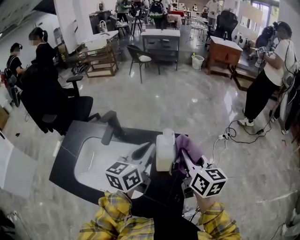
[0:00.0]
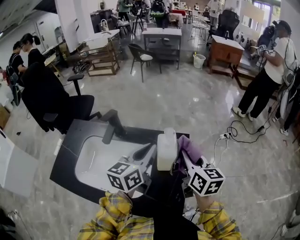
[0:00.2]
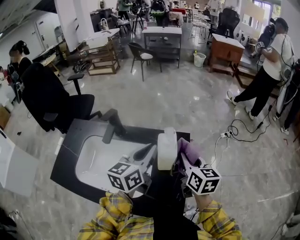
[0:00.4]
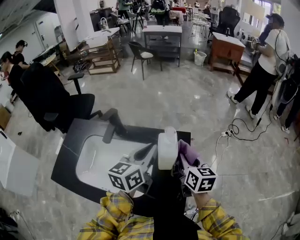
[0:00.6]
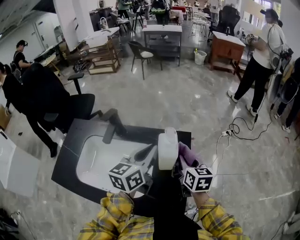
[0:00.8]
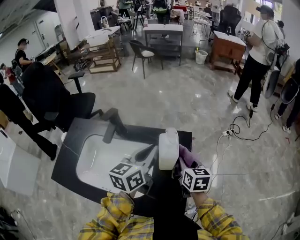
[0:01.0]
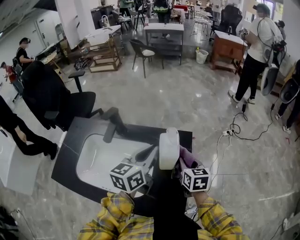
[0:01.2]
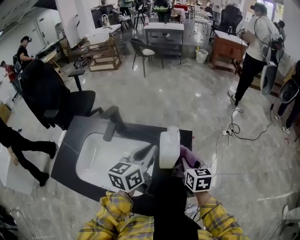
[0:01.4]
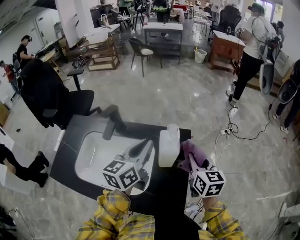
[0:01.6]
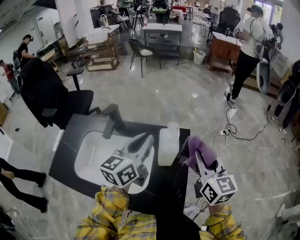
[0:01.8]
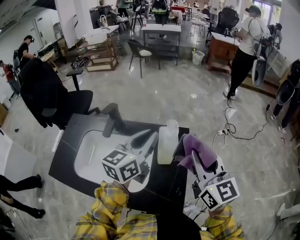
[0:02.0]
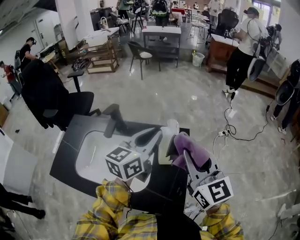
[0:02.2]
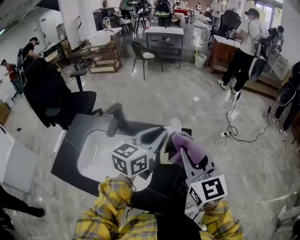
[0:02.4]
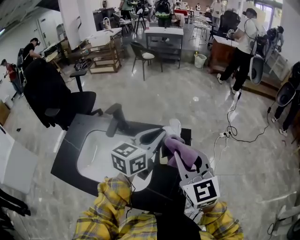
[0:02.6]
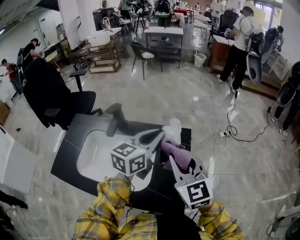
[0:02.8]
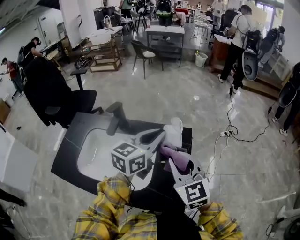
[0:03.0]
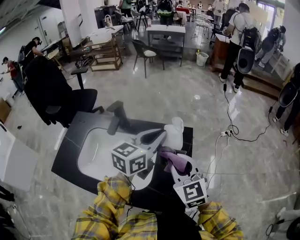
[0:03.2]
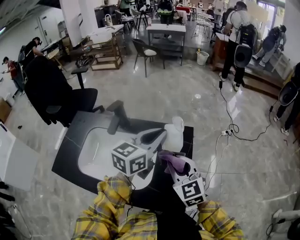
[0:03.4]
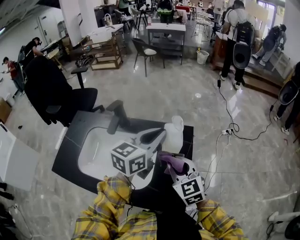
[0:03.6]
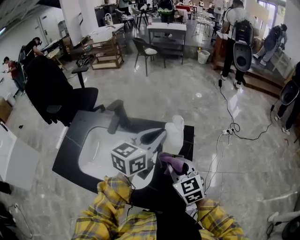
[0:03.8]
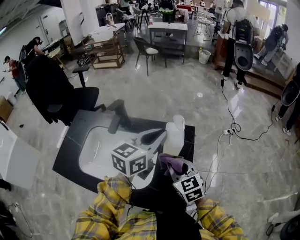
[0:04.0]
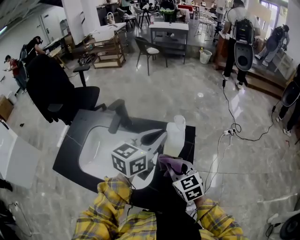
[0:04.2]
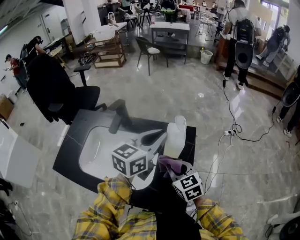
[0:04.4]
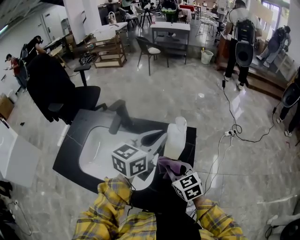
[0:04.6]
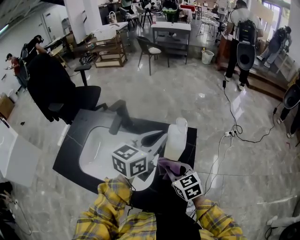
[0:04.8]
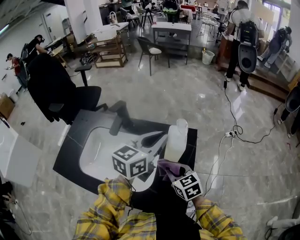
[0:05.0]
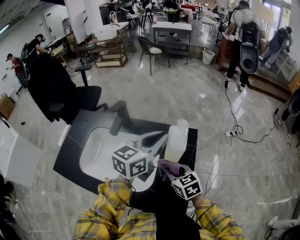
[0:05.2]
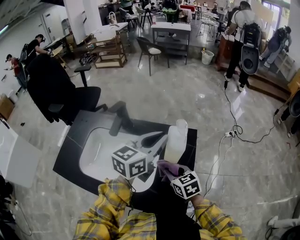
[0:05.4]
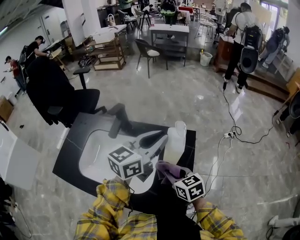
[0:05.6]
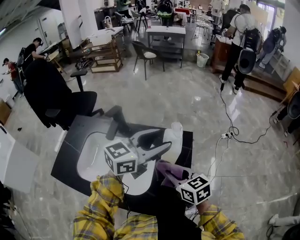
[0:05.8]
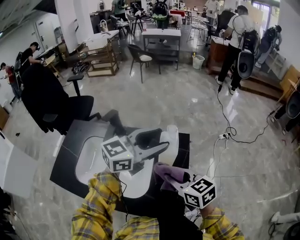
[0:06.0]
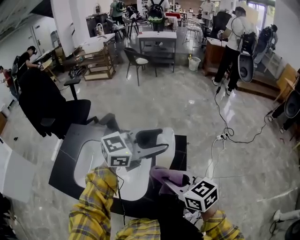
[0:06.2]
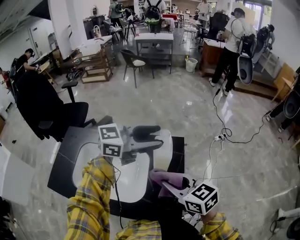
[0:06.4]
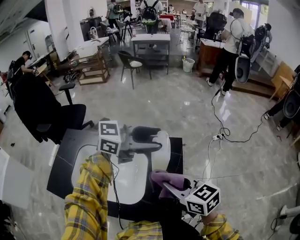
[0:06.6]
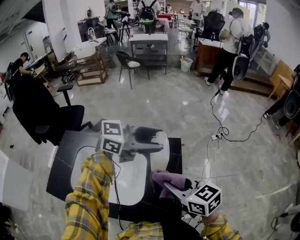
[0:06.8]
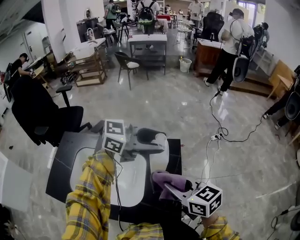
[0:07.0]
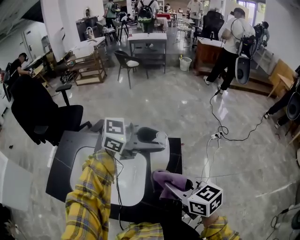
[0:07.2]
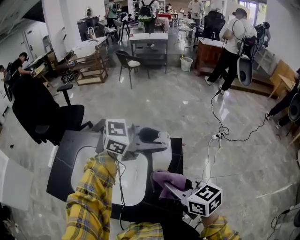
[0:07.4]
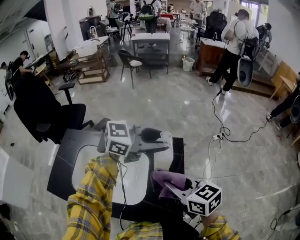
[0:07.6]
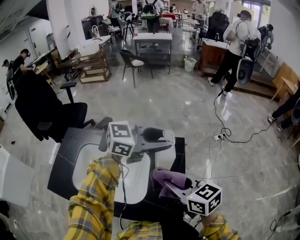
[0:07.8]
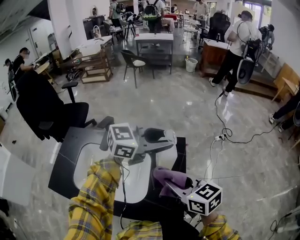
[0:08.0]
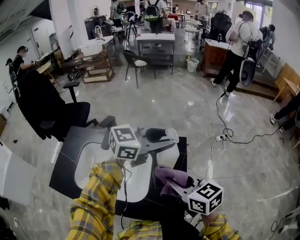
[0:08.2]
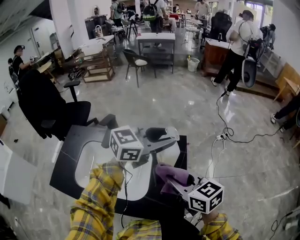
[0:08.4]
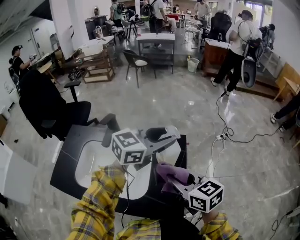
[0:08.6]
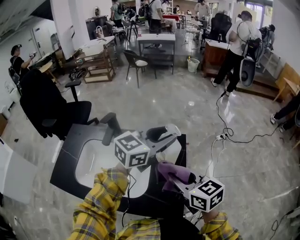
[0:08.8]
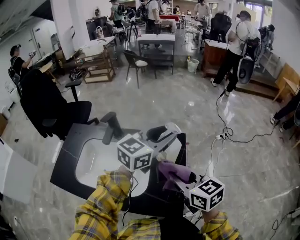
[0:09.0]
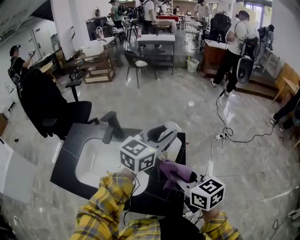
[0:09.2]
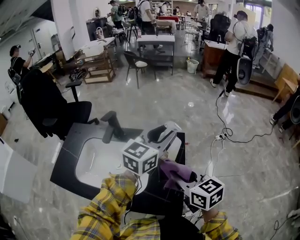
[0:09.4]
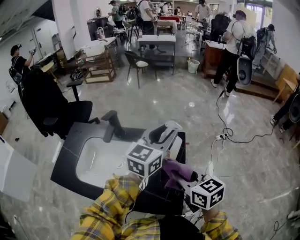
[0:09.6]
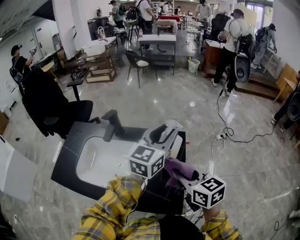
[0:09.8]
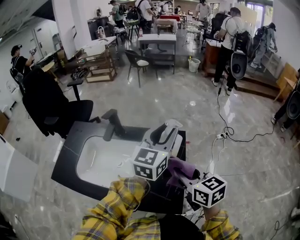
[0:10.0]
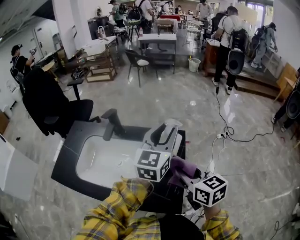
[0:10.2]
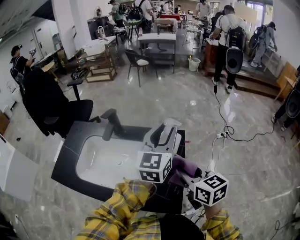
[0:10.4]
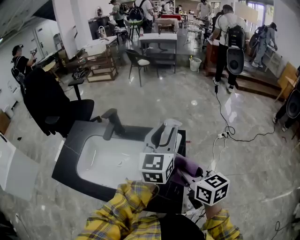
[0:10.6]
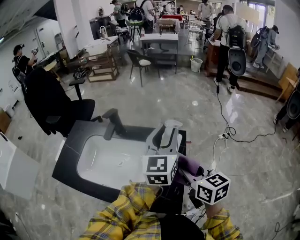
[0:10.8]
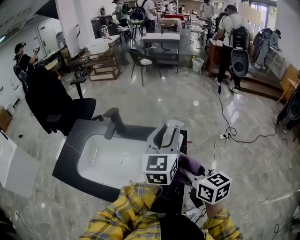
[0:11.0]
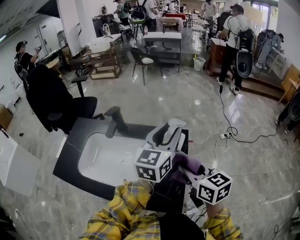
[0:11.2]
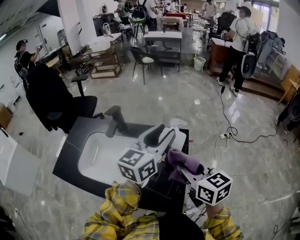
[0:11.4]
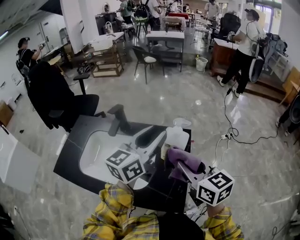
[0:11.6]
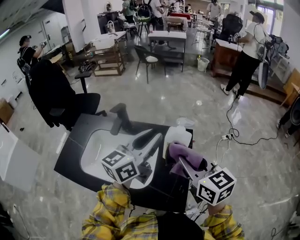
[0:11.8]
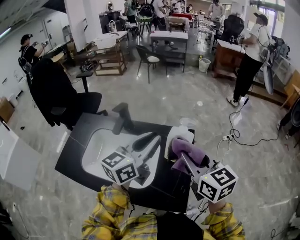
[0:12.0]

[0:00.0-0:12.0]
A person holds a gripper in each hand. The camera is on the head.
0:00.0 to 0:01.6: The right gripper shifts some 5 cm downward.
0:01.6 to 0:03.0: The right gripper heads to the left, backward and upward, covering approximately 15 cm, and swivels about 30 degrees.
0:03.0 to 0:04.4: The right gripper heads downward, covering roughly 15 cm, and changes its angle by approximately 20 degrees.
0:04.4 to 0:06.0: The right gripper goes approximately 5 cm upward, while the left gripper turns by approximately 30 degrees, and opens its fingers.
0:06.0 to 0:07.6: The left gripper swivels some 30 degrees.
0:07.6 to 0:09.0: The left gripper turns by some 40 degrees.
0:09.0 to 0:10.4: The left gripper swivels about 30 degrees.
0:10.4 to 0:12.0: The right gripper goes about 5 cm upward; the left gripper goes roughly 10 cm to the left, and turns by about 20 degrees.

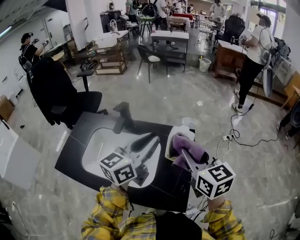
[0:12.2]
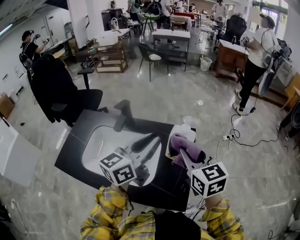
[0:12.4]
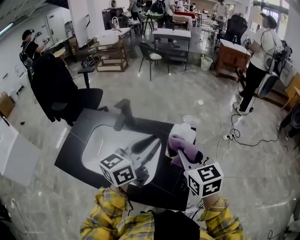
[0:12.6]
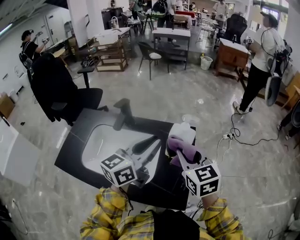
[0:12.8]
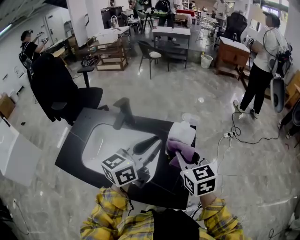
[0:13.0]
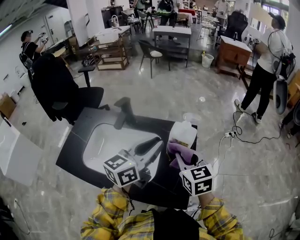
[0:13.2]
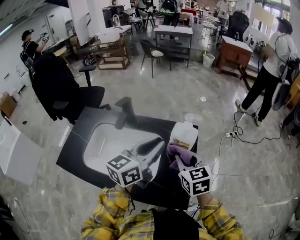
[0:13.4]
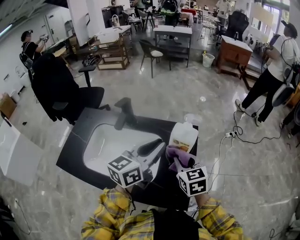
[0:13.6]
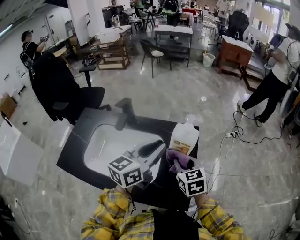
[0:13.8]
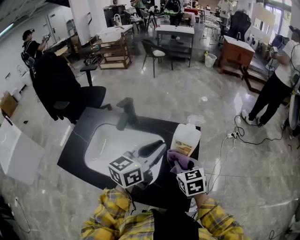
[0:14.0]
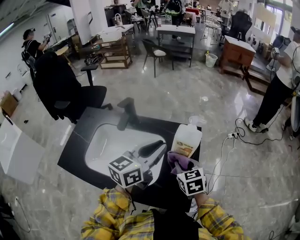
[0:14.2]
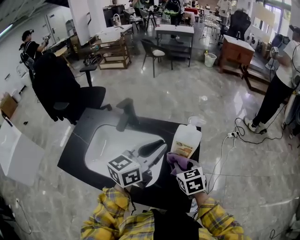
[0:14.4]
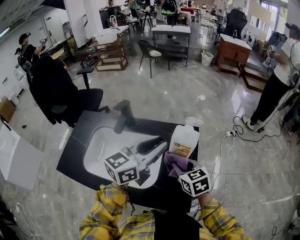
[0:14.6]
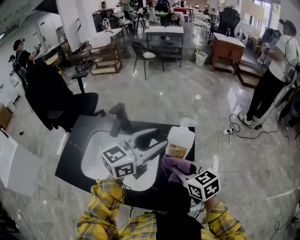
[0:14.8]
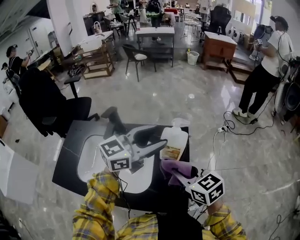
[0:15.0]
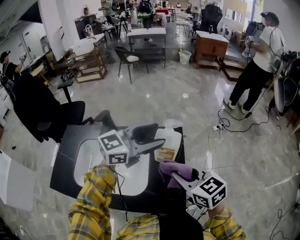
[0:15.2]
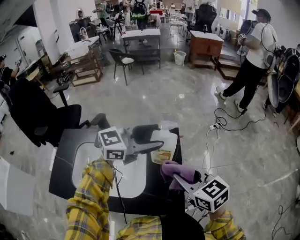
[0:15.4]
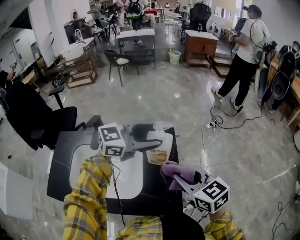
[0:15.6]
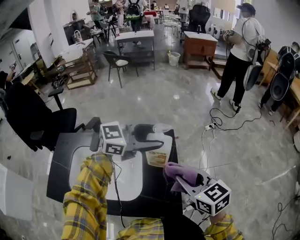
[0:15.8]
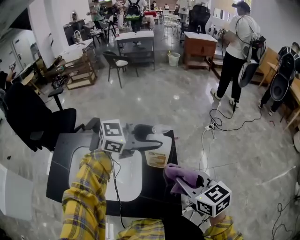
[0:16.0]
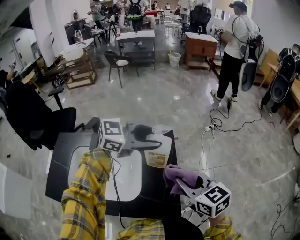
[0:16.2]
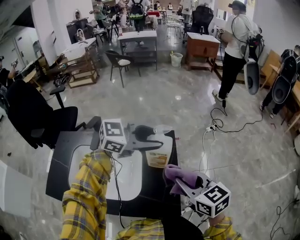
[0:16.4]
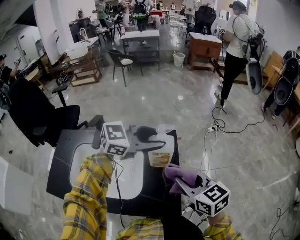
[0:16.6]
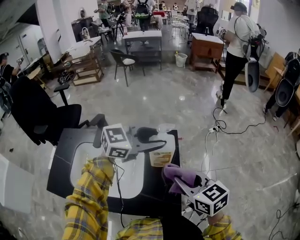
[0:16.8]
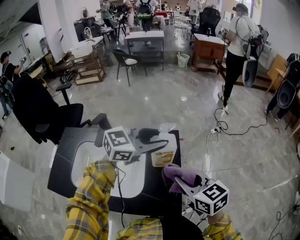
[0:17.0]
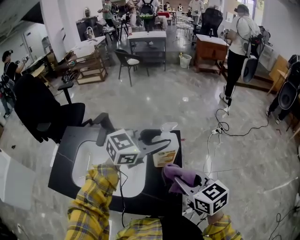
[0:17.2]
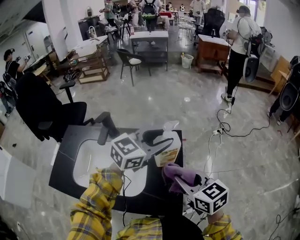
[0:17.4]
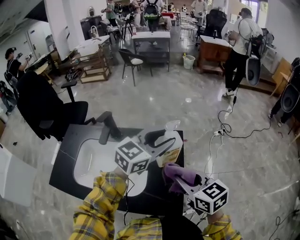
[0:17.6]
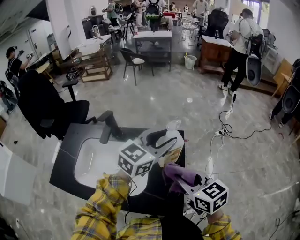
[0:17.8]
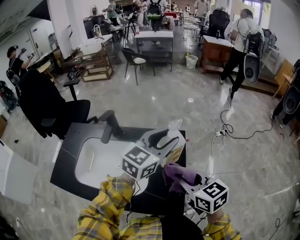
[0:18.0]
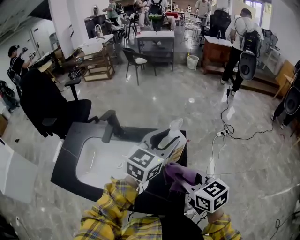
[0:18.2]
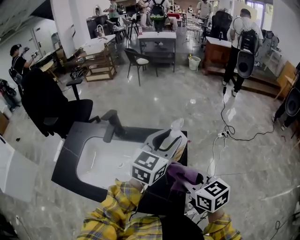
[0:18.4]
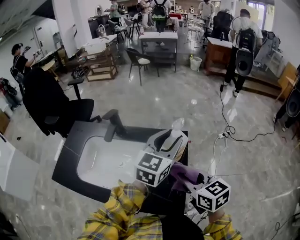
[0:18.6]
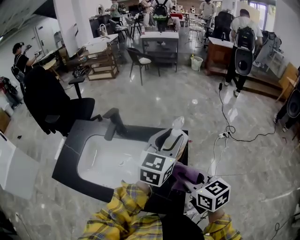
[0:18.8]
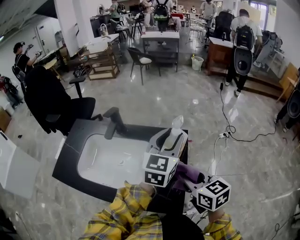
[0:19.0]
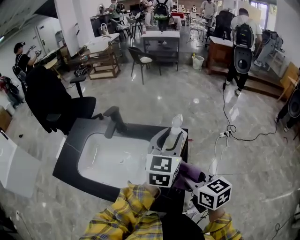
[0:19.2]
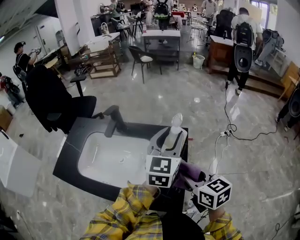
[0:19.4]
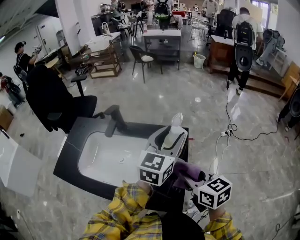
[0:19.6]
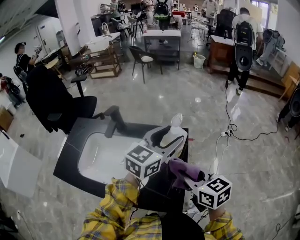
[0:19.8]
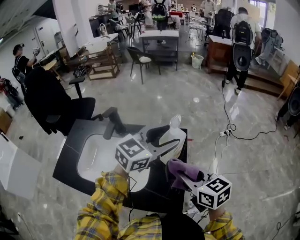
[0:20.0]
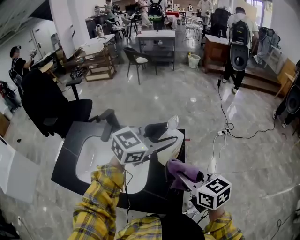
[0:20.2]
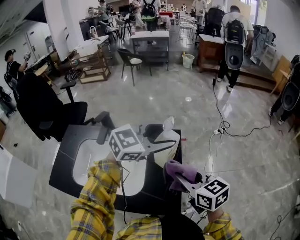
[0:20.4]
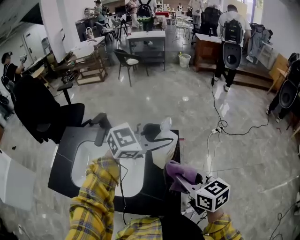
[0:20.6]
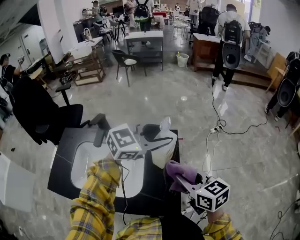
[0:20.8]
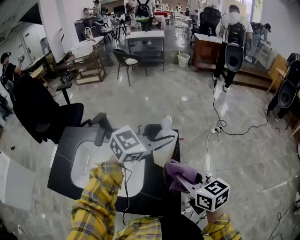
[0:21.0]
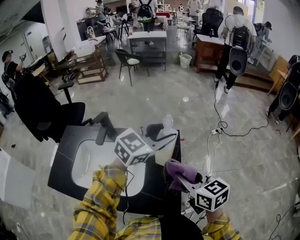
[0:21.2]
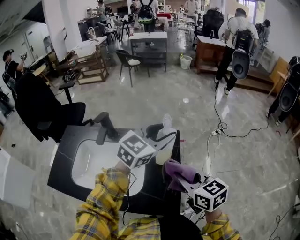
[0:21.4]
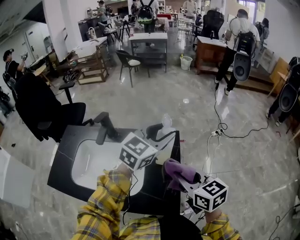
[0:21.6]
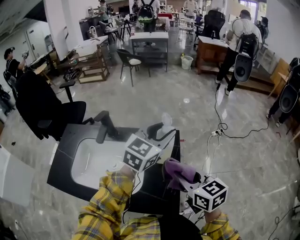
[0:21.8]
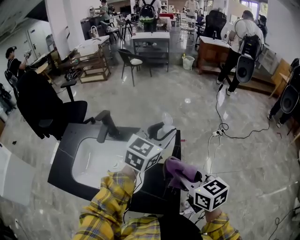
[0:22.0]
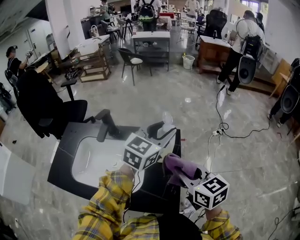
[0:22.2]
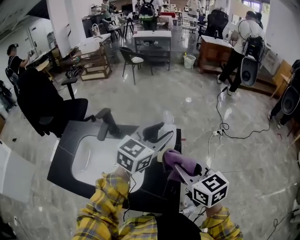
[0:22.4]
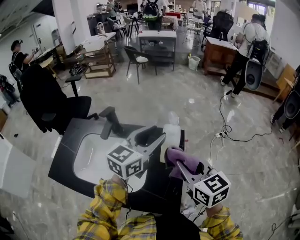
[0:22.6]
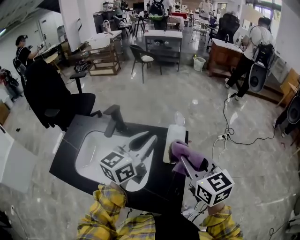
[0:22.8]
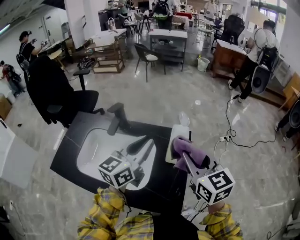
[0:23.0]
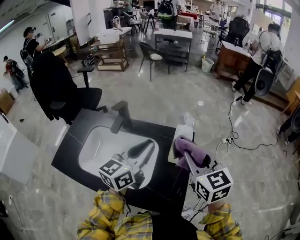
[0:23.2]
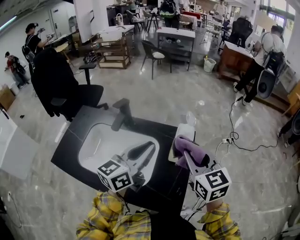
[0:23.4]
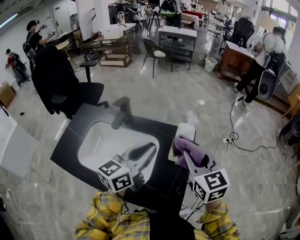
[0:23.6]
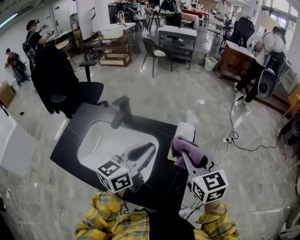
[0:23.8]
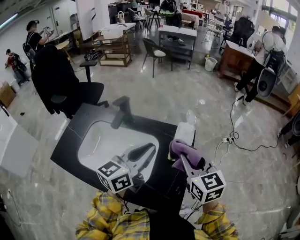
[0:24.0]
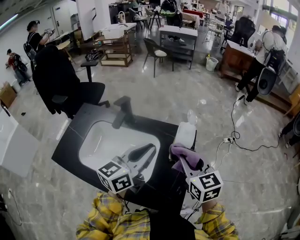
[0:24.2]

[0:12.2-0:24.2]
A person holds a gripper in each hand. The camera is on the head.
0:12.2 to 0:13.8: The left gripper is displaced downward by roughly 5 cm, while the right gripper moves downward, some 15 cm.
0:13.8 to 0:15.2: The right gripper heads upward and backward, covering about 10 cm. The left gripper is displaced to the right by some 5 cm, rotates some 40 degrees, and opens up.
0:16.6 to 0:18.2: The left gripper rotates roughly 40 degrees.
0:19.8 to 0:21.2: The left gripper changes its angle by roughly 20 degrees.
0:21.2 to 0:22.6: The left gripper shifts approximately 5 cm to the left, and rotates some 30 degrees, while the right gripper ends up about 5 cm from where it was.
0:22.6 to 0:24.2: The left gripper goes roughly 10 cm to the left and backward, and closes; the right gripper changes place by some 5 cm.
